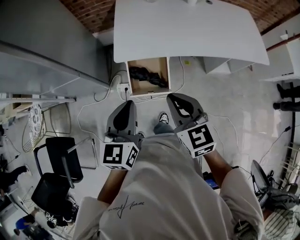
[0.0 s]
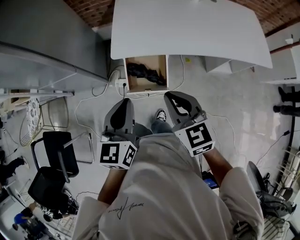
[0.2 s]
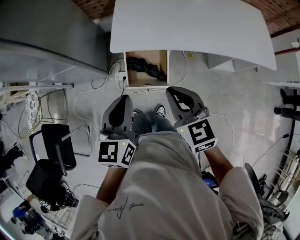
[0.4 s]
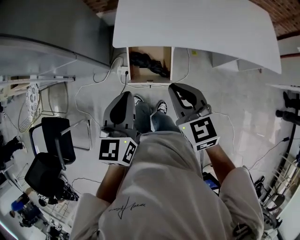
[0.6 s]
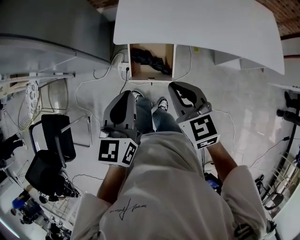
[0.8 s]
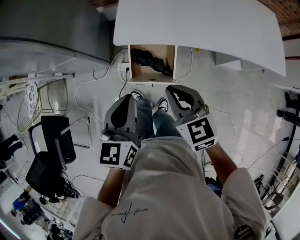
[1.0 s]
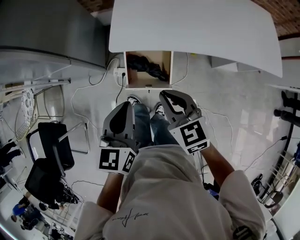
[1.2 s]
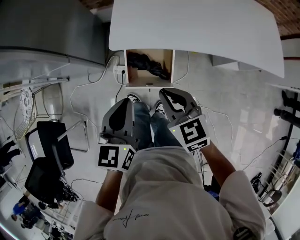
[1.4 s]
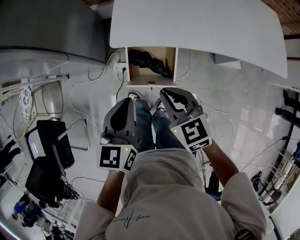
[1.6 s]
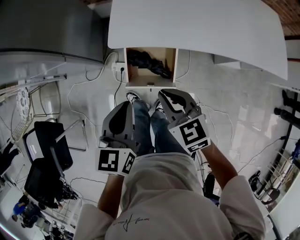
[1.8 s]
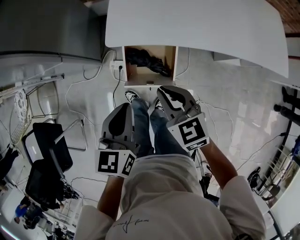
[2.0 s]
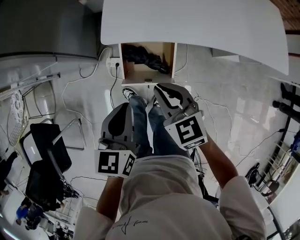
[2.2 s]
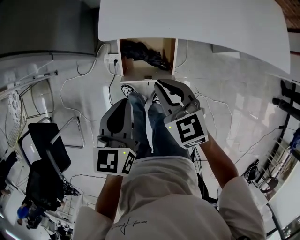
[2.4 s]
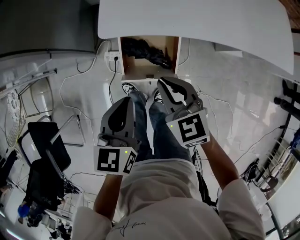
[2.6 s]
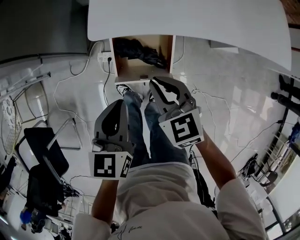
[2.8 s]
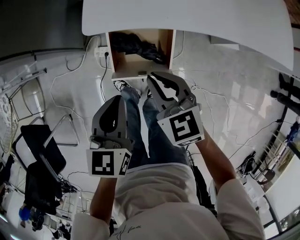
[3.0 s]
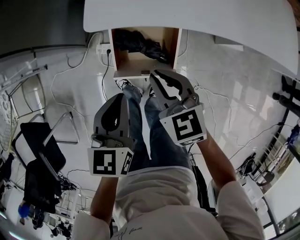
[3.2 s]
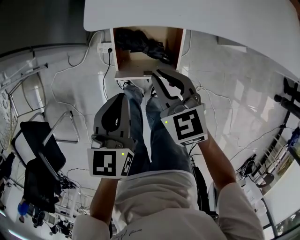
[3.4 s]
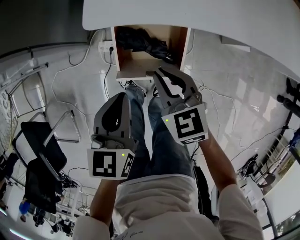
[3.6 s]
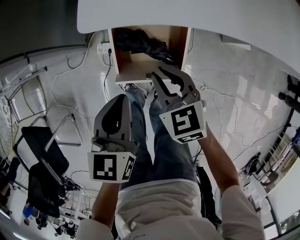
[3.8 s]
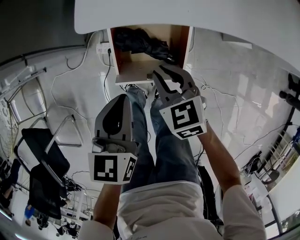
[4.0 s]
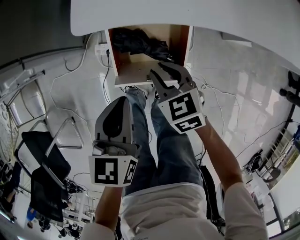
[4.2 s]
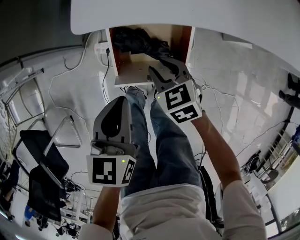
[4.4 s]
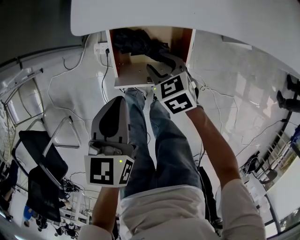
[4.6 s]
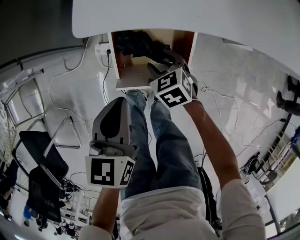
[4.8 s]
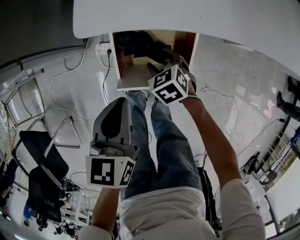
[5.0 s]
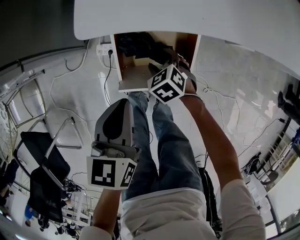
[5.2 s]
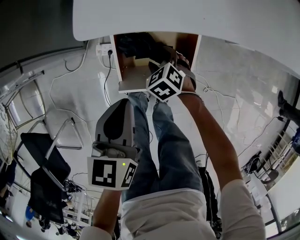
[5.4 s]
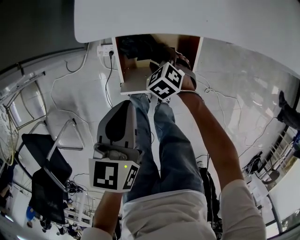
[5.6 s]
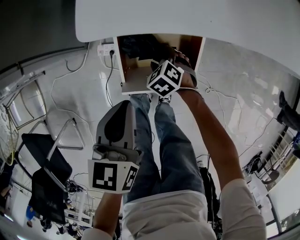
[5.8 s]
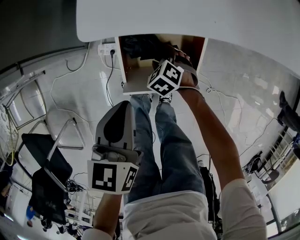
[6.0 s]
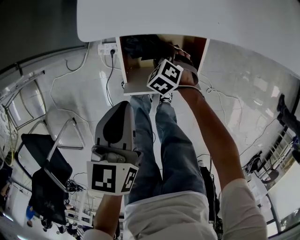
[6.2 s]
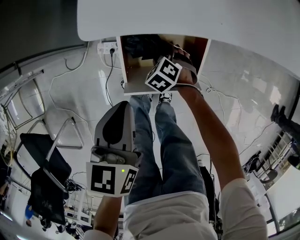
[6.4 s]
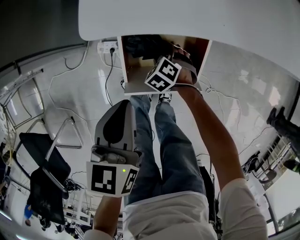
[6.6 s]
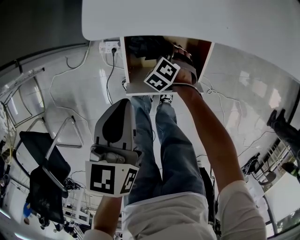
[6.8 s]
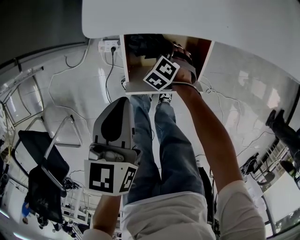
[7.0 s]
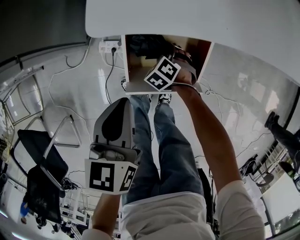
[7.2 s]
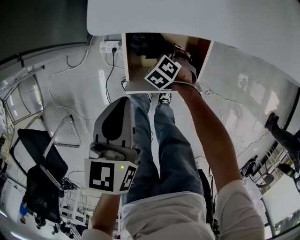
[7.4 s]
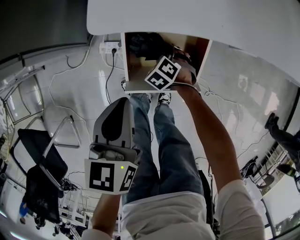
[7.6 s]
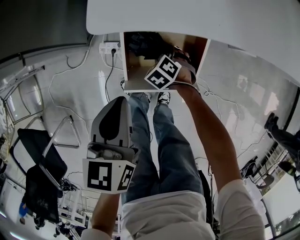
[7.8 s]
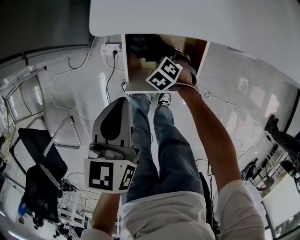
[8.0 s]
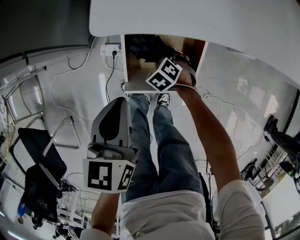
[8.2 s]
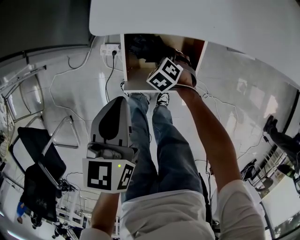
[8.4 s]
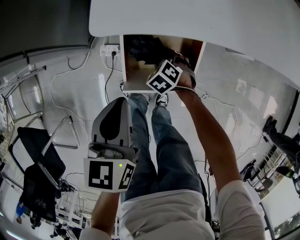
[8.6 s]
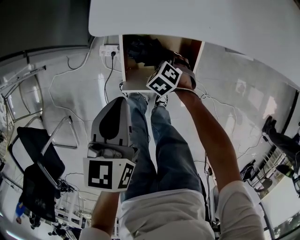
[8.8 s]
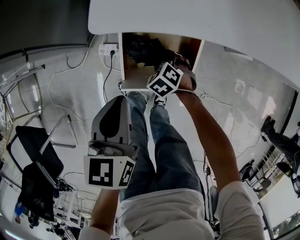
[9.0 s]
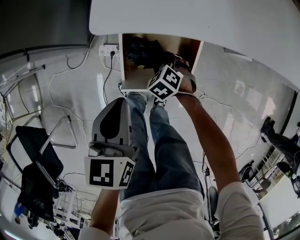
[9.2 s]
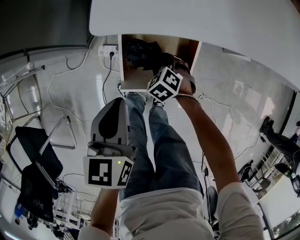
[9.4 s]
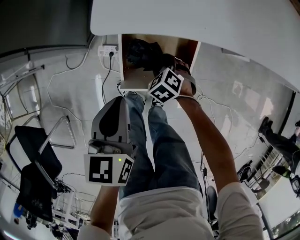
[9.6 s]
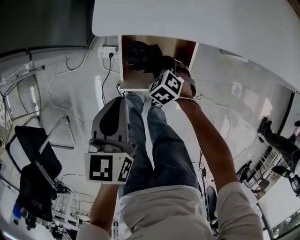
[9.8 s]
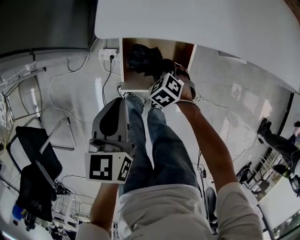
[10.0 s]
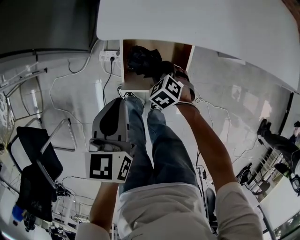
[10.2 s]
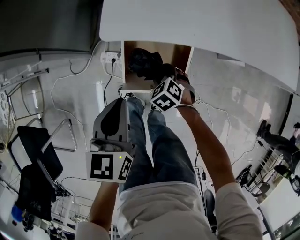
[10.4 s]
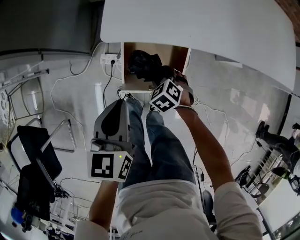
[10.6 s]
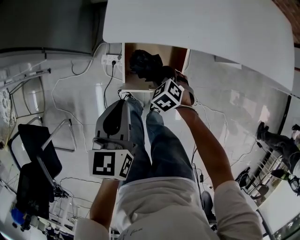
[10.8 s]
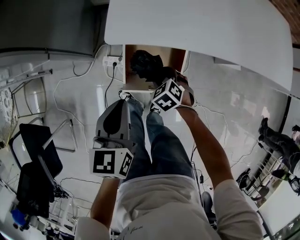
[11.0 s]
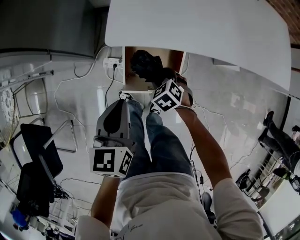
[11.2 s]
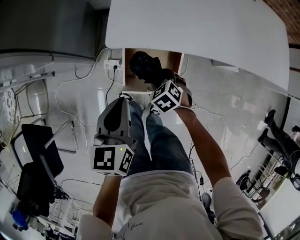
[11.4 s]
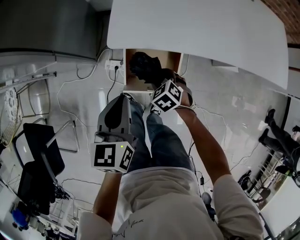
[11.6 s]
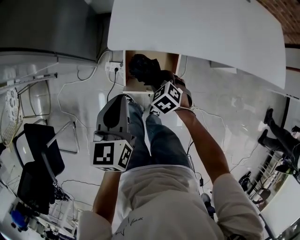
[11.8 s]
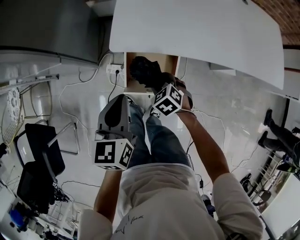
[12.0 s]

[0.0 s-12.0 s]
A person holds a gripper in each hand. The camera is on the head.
0.0 to 1.6 s: The grippers both shift downward and forward by about 15 cm.
1.6 to 3.0 s: The left gripper travels downward by roughly 10 cm, while the right gripper is displaced downward and forward by about 10 cm.
3.0 to 4.4 s: The right gripper goes some 20 cm downward, and opens up; the left gripper travels downward by approximately 10 cm.
4.4 to 6.0 s: The right gripper shifts roughly 15 cm downward, changes its angle by approximately 30 degrees, and opens its fingers.
6.0 to 9.0 s: There are only small adjustments of the grippers.
9.0 to 10.4 s: The right gripper is displaced upward by roughly 5 cm.
10.4 to 12.0 s: The grippers both shift upward by about 10 cm.

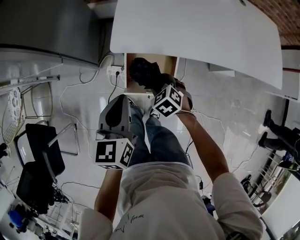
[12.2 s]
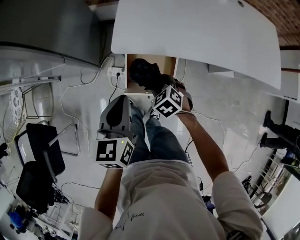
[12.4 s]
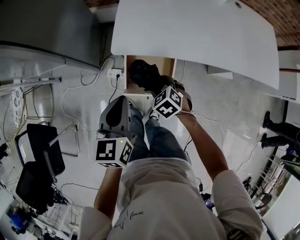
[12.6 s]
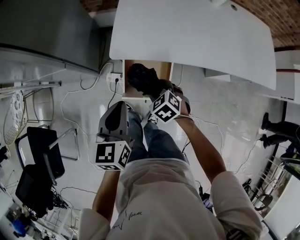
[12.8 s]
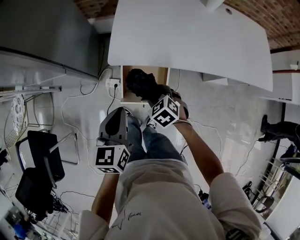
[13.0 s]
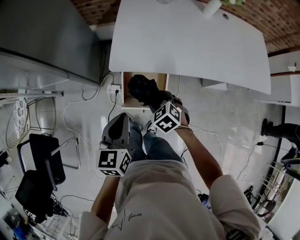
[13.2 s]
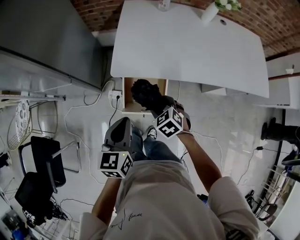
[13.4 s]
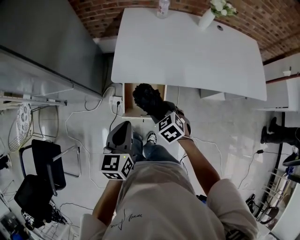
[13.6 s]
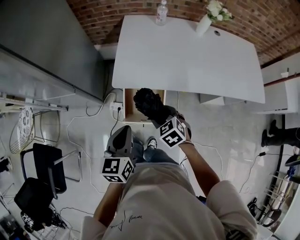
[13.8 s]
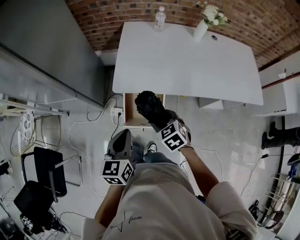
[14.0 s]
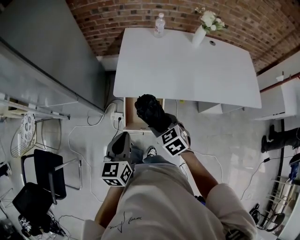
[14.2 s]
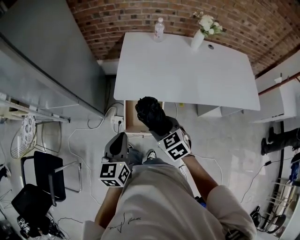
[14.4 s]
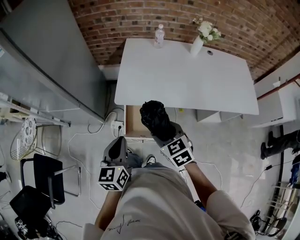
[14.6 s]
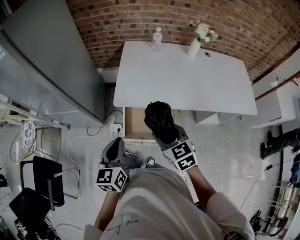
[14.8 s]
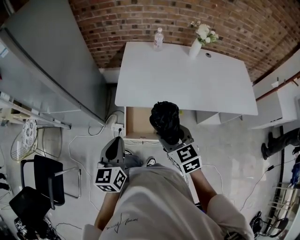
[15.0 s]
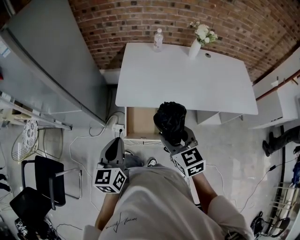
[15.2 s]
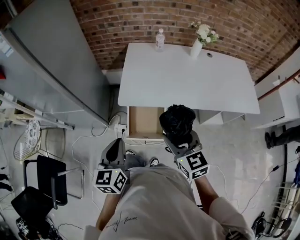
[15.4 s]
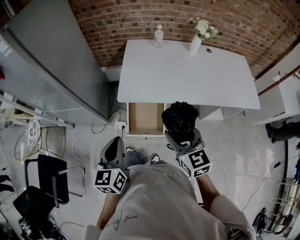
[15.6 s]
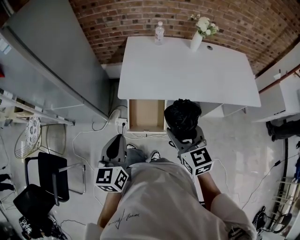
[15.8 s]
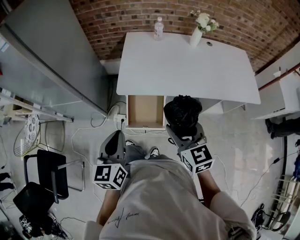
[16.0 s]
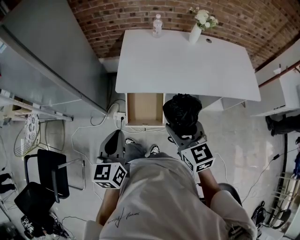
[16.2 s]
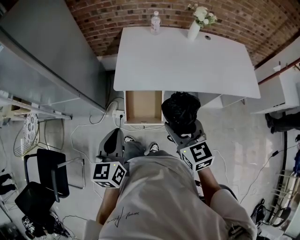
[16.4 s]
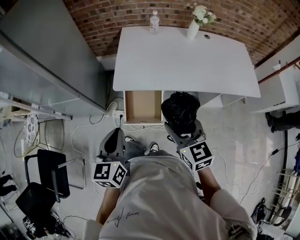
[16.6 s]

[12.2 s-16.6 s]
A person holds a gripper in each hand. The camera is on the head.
12.2 to 13.6 s: The left gripper goes approximately 5 cm upward. The right gripper shifts approximately 15 cm upward.
13.6 to 15.2 s: The left gripper goes roughly 5 cm upward. Meanwhile the right gripper travels upward by some 20 cm, and rotates approximately 30 degrees.
15.2 to 16.6 s: The grippers make only small movements.

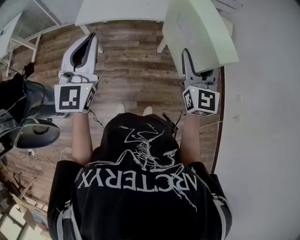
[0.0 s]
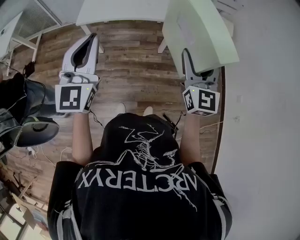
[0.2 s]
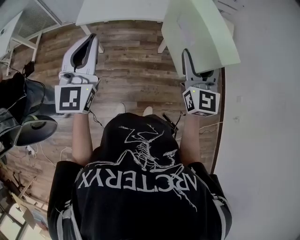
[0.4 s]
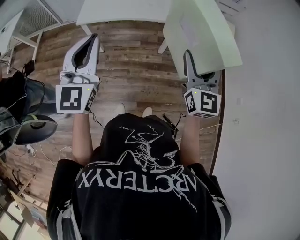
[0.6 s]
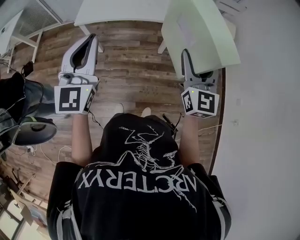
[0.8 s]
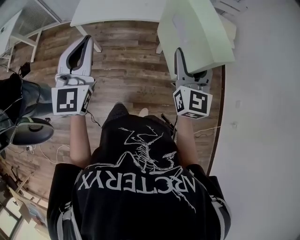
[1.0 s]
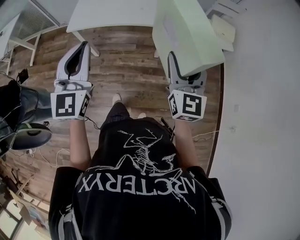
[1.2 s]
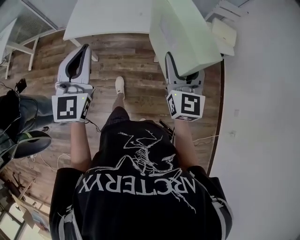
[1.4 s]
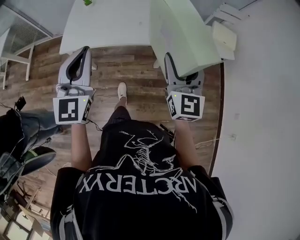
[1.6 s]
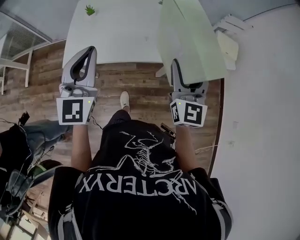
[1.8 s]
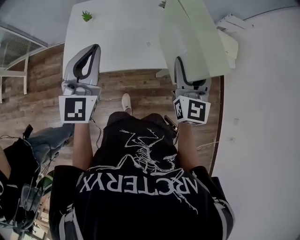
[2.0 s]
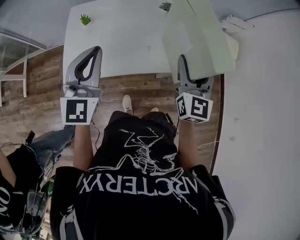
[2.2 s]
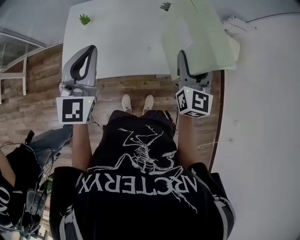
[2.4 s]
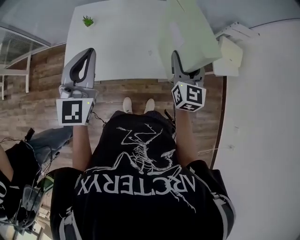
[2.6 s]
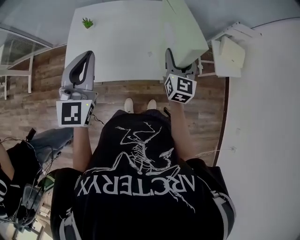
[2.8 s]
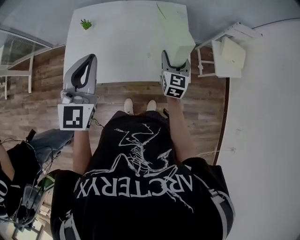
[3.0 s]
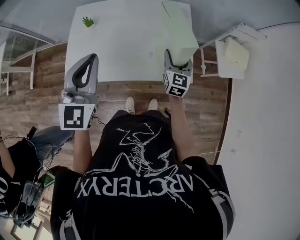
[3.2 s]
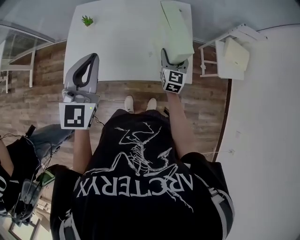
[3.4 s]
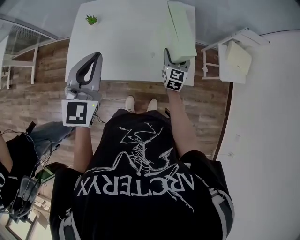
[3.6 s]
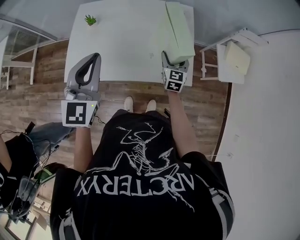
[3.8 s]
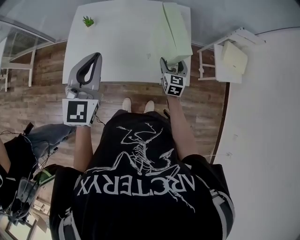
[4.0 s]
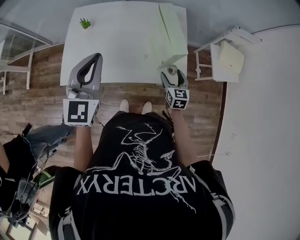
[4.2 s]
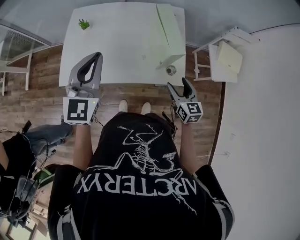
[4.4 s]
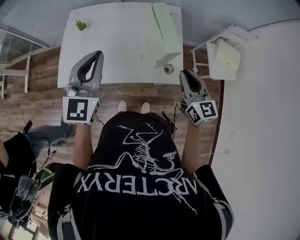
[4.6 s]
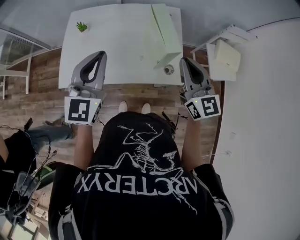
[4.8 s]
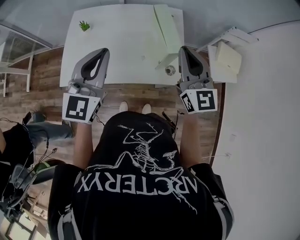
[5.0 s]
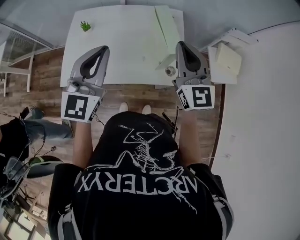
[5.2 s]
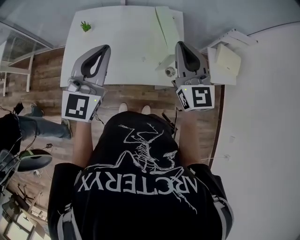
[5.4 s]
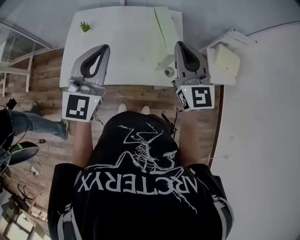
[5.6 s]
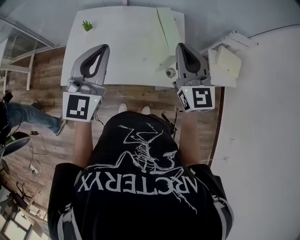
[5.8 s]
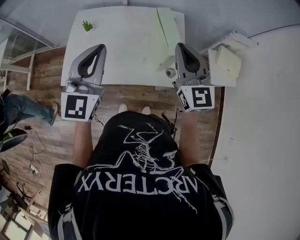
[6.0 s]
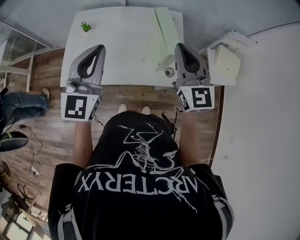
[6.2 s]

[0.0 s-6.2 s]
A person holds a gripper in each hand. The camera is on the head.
0.0 to 1.6 s: Both grippers move forward, approximately 25 cm.
1.6 to 3.2 s: The right gripper heads forward and downward, covering roughly 35 cm. Meanwhile the left gripper goes approximately 25 cm forward.
3.2 to 4.6 s: The right gripper shifts approximately 15 cm upward, backward and to the right, turns by approximately 20 degrees, and closes its fingers.
4.6 to 6.2 s: The right gripper shifts about 15 cm upward, to the left and forward, and turns by approximately 20 degrees.

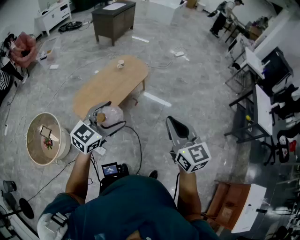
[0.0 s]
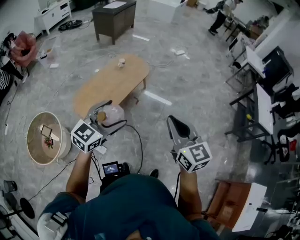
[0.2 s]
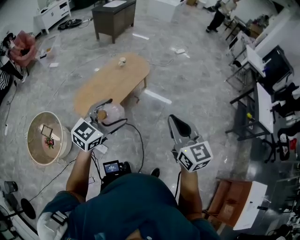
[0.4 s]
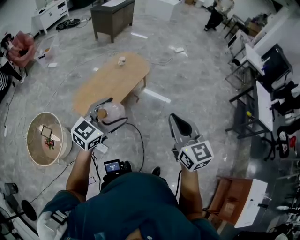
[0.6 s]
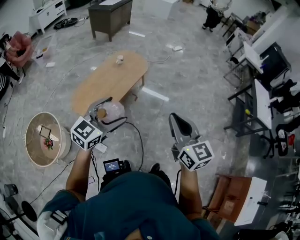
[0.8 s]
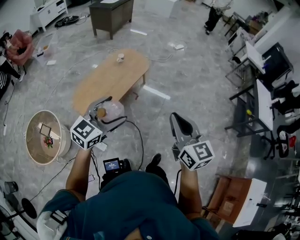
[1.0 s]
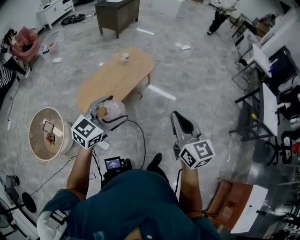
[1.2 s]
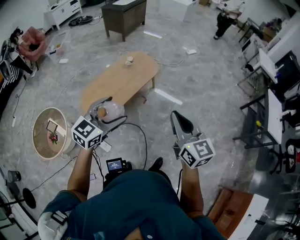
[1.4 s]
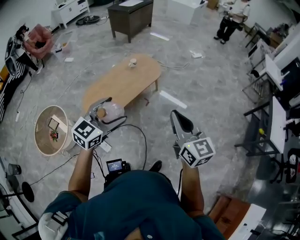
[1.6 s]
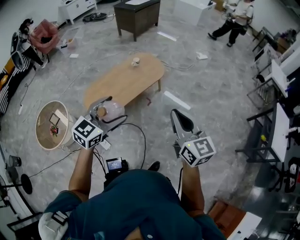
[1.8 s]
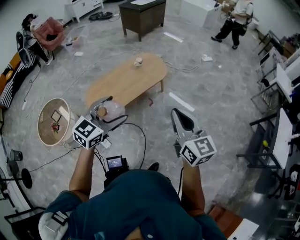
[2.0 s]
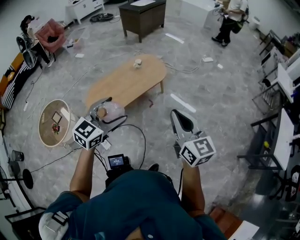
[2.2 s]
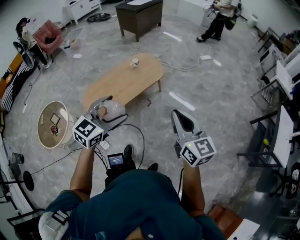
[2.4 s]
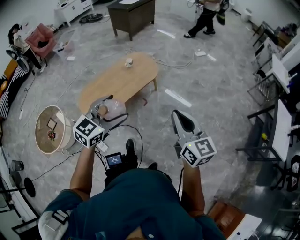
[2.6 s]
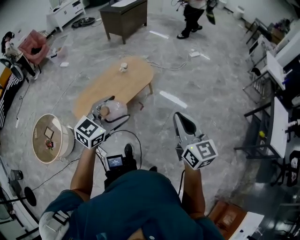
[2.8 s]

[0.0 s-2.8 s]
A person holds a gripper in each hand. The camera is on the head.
0.0 to 1.4 s: Both grippers travel together forward, approximately 5 cm.
1.4 to 2.8 s: The two grippers go about 20 cm to the right and forward.
